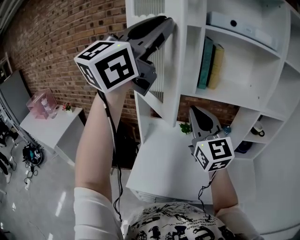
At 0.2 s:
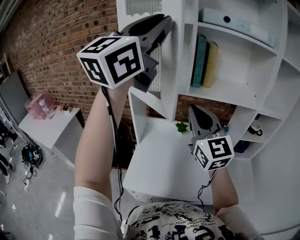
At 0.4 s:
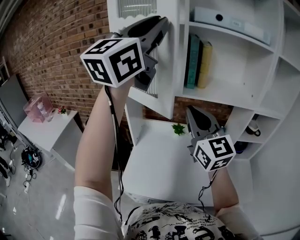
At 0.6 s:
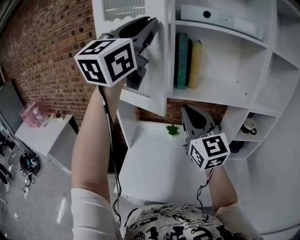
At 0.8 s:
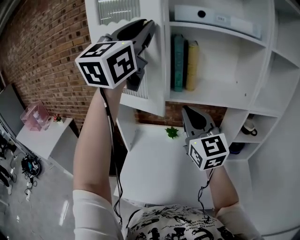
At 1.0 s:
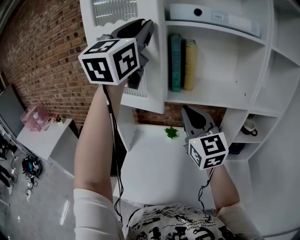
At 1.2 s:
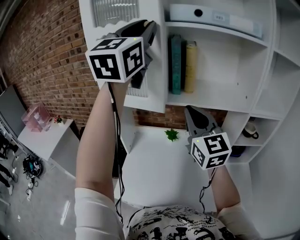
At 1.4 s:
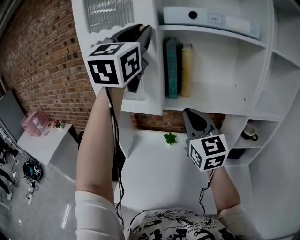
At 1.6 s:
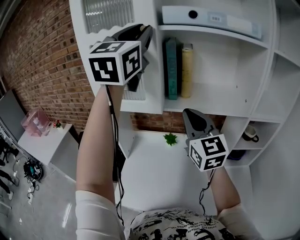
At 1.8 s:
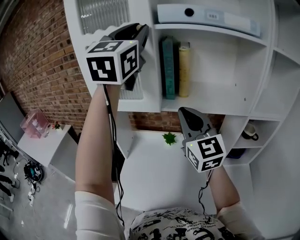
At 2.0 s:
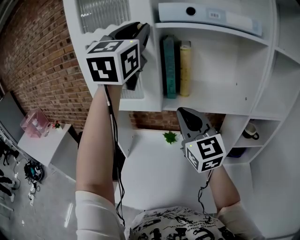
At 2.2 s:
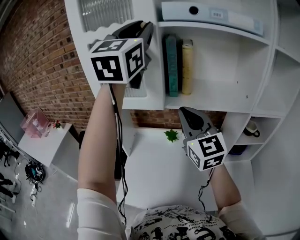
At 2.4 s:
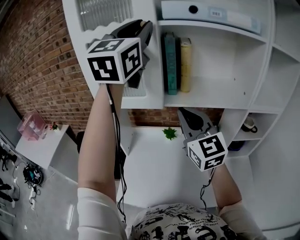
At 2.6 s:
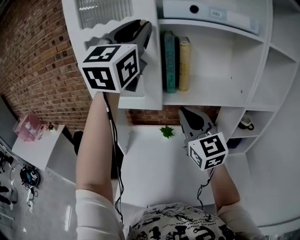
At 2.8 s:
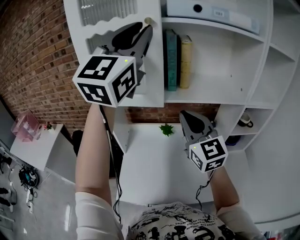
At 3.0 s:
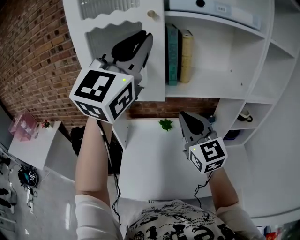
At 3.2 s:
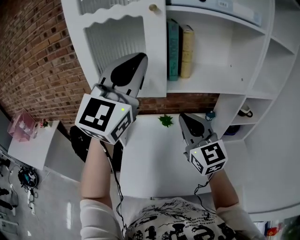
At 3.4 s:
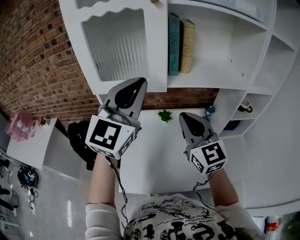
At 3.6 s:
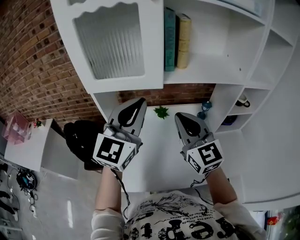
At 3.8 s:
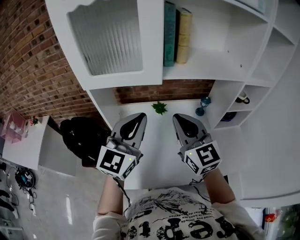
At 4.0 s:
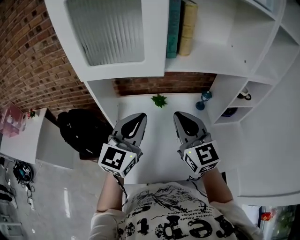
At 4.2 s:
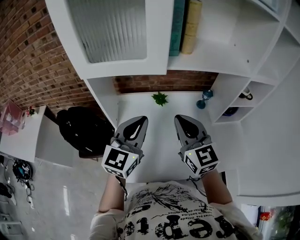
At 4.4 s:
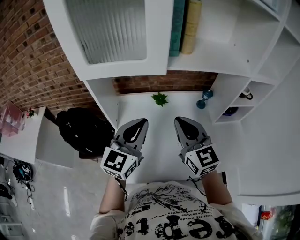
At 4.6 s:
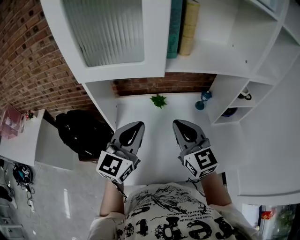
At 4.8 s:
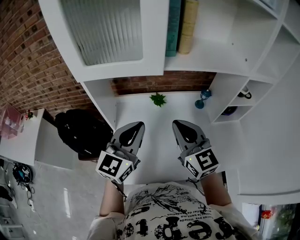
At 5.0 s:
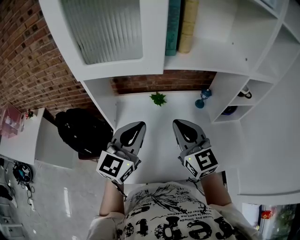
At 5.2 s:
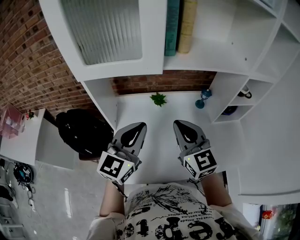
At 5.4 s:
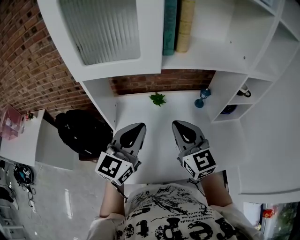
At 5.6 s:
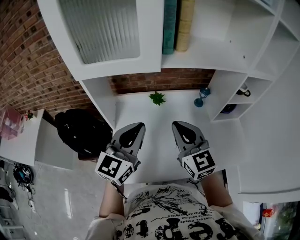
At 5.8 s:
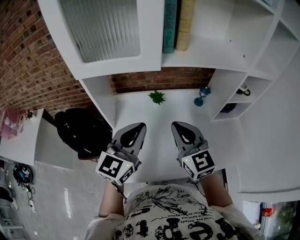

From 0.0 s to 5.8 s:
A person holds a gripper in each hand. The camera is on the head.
From 0.0 s to 1.4 s: The left gripper shifts some 20 cm forward and to the right, and swivels approximately 30 degrees. Meanwhile the right gripper moves to the right and forward, approximately 15 cm.
From 1.4 s to 2.8 s: The grippers make only small movements.
From 2.8 s to 4.4 s: The left gripper heads downward, covering roughly 40 cm, and changes its angle by approximately 30 degrees. The right gripper goes some 15 cm downward.
From 4.4 s to 5.8 s: The grippers move only a little.

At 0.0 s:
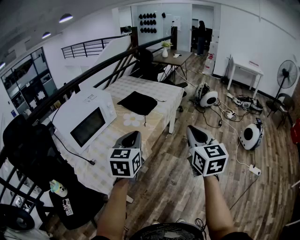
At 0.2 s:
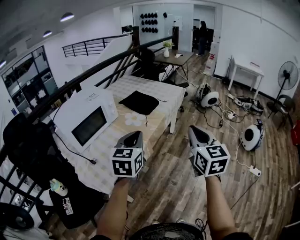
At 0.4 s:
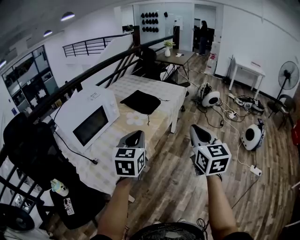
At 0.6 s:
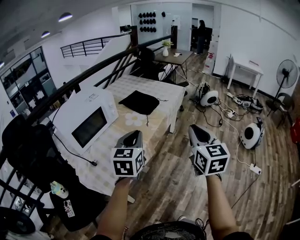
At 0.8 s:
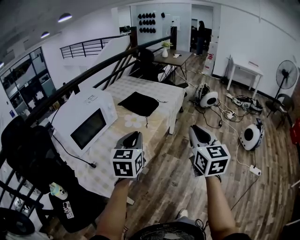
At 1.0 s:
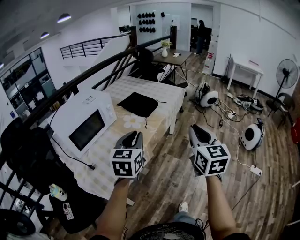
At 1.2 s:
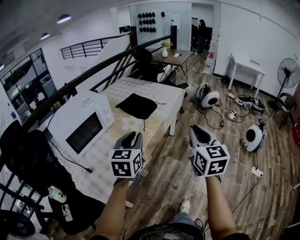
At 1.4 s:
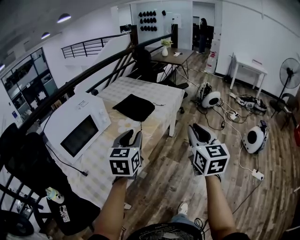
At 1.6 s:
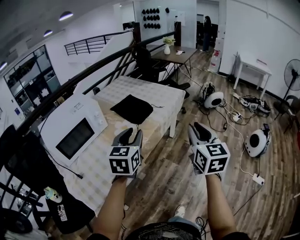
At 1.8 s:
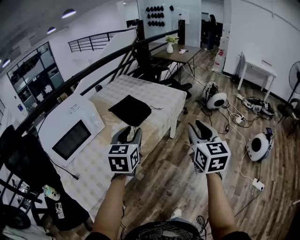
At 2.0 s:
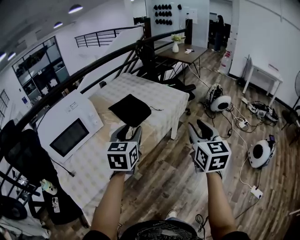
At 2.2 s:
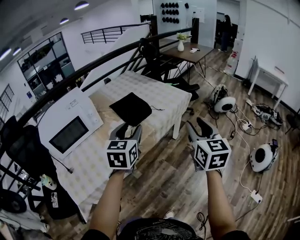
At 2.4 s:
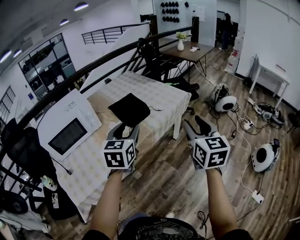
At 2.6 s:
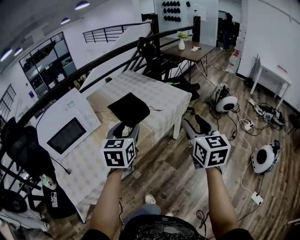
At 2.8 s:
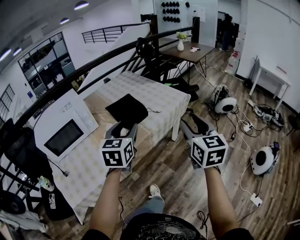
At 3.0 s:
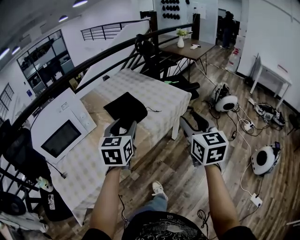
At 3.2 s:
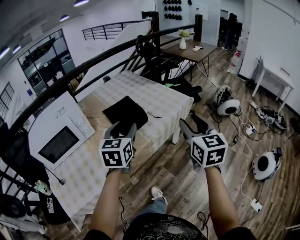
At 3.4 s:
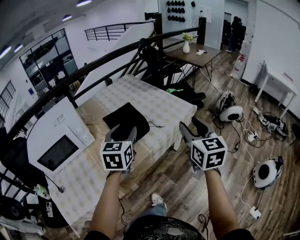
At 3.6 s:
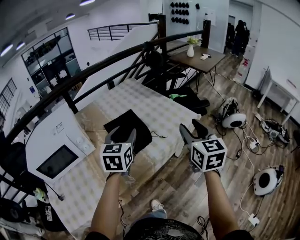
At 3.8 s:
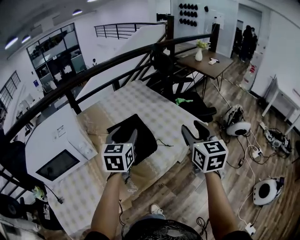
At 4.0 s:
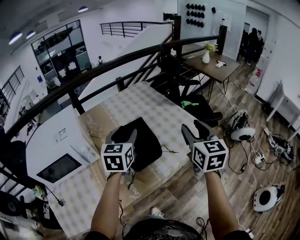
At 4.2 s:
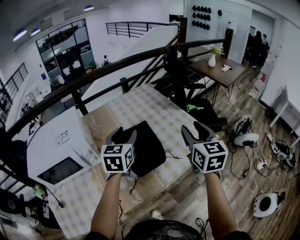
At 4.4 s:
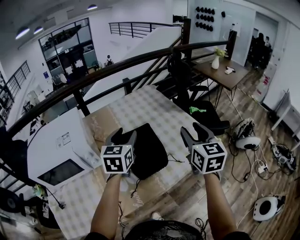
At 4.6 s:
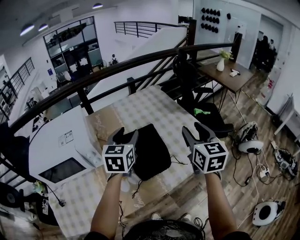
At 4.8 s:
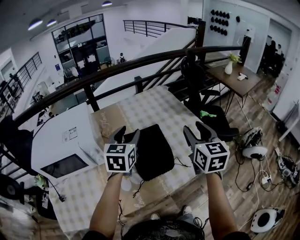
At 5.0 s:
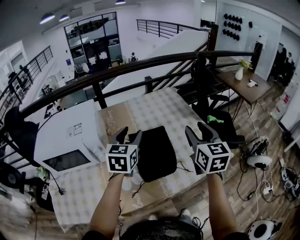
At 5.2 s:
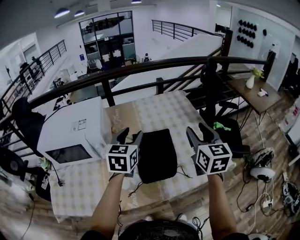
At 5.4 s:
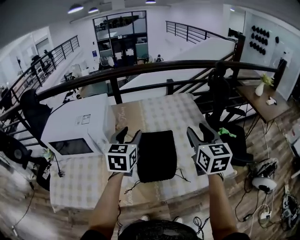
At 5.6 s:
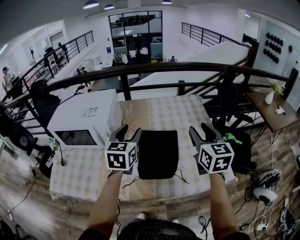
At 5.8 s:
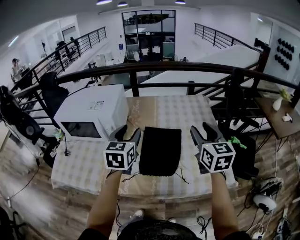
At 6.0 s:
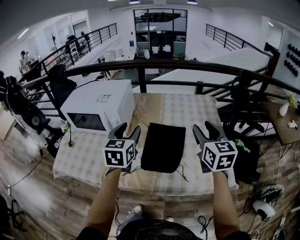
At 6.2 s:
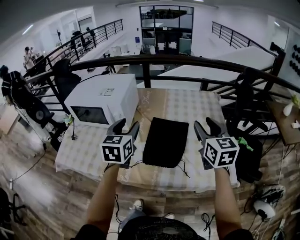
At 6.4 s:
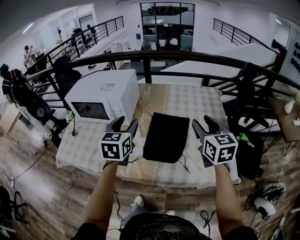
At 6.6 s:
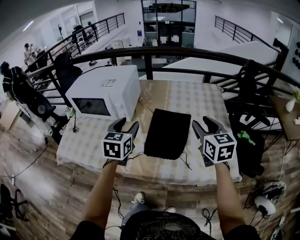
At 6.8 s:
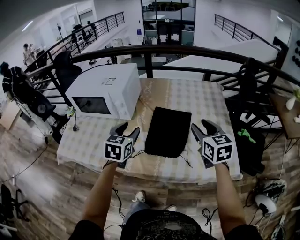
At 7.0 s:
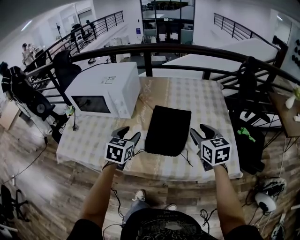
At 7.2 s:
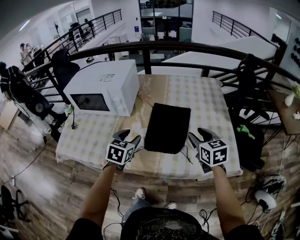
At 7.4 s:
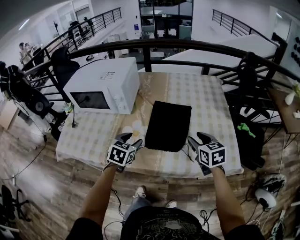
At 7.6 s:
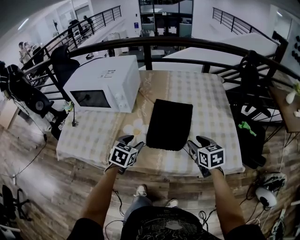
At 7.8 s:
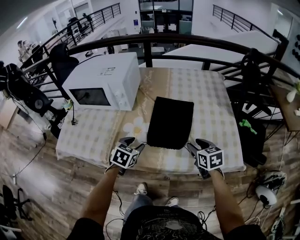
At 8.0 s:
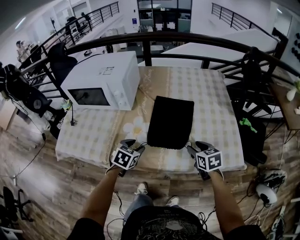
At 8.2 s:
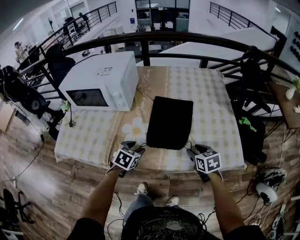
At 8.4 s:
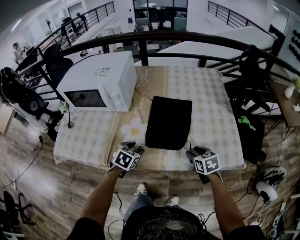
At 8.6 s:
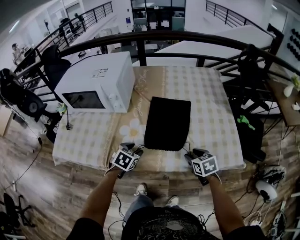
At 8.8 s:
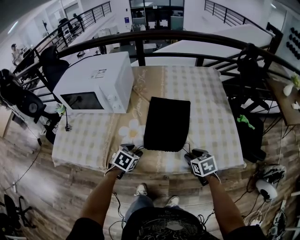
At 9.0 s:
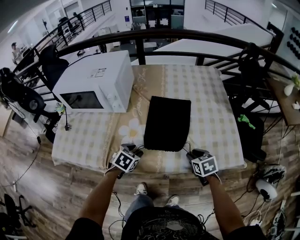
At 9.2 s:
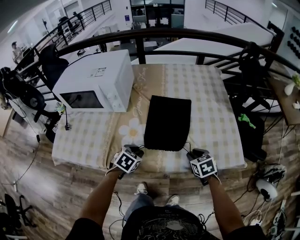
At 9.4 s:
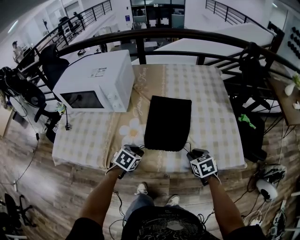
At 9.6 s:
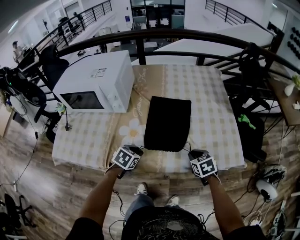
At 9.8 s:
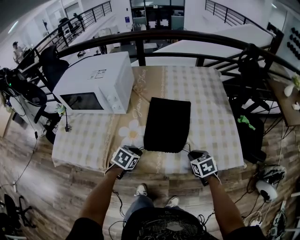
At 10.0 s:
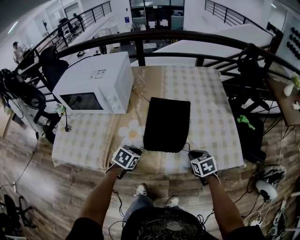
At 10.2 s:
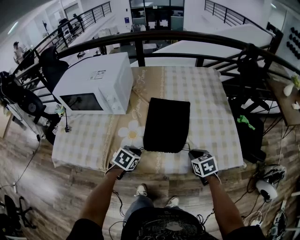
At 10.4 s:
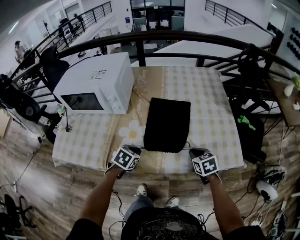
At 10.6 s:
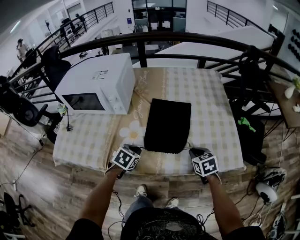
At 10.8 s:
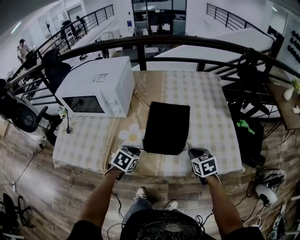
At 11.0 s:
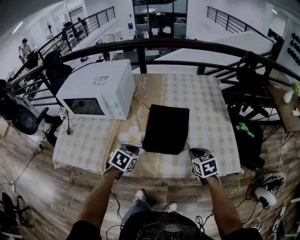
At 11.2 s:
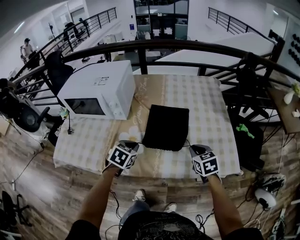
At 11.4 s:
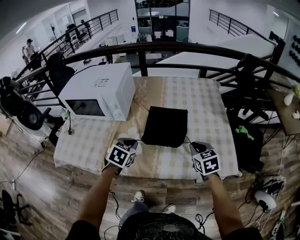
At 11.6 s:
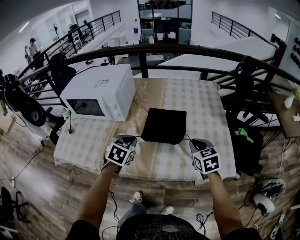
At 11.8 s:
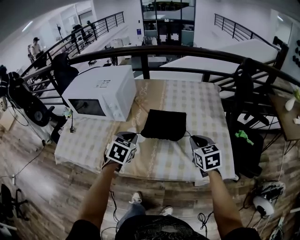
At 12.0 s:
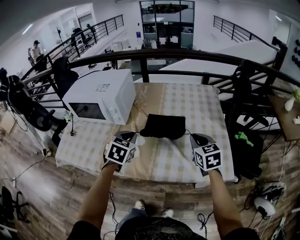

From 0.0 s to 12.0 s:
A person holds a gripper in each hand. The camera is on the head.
From 0.0 s to 1.6 s: Both grippers travel together forward and to the right, some 15 cm. The left gripper opens.
From 1.6 s to 3.0 s: The two grippers go about 15 cm forward and to the right. The right gripper opens up.
From 3.0 s to 4.4 s: Both grippers move forward, roughly 30 cm.
From 4.4 s to 6.0 s: The left gripper shifts by some 10 cm, and swivels approximately 40 degrees. Meanwhile the right gripper ends up some 10 cm from where it was, and changes its angle by approximately 40 degrees.
From 6.0 s to 7.6 s: The left gripper travels downward and backward by approximately 20 cm, and changes its angle by about 30 degrees. Meanwhile the right gripper shifts approximately 20 cm downward, and swivels roughly 30 degrees.
From 7.6 s to 9.0 s: The two grippers go about 10 cm downward.
From 9.0 s to 10.4 s: The right gripper closes its fingers, while the left gripper closes its fingers.
From 10.4 s to 12.0 s: The right gripper is displaced upward and forward by approximately 20 cm, and turns by approximately 20 degrees; the left gripper shifts some 15 cm upward, and swivels about 30 degrees.

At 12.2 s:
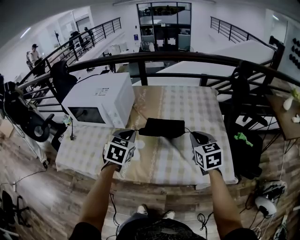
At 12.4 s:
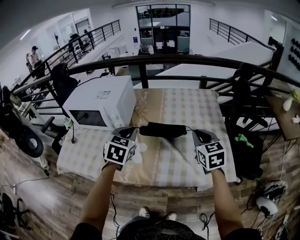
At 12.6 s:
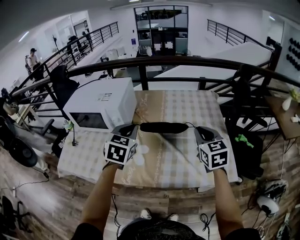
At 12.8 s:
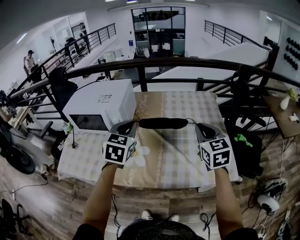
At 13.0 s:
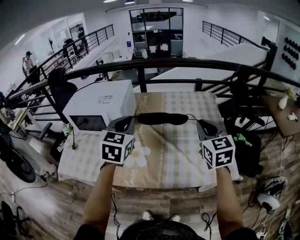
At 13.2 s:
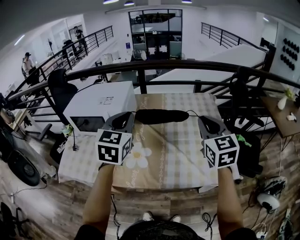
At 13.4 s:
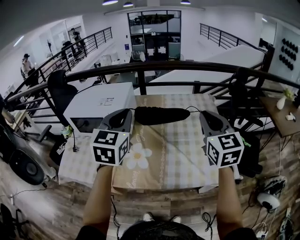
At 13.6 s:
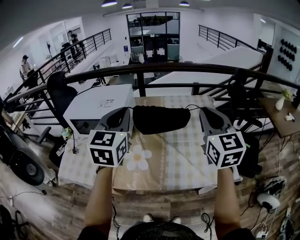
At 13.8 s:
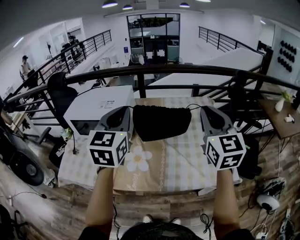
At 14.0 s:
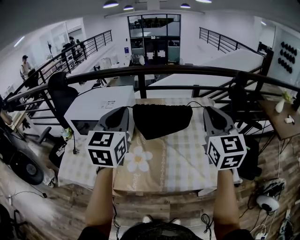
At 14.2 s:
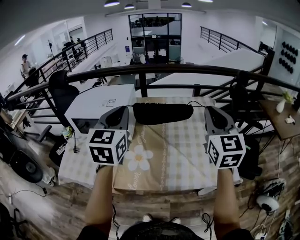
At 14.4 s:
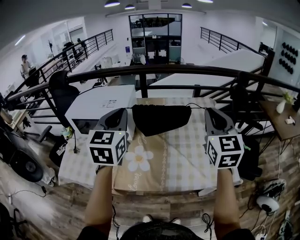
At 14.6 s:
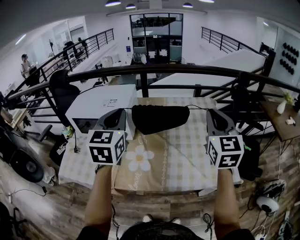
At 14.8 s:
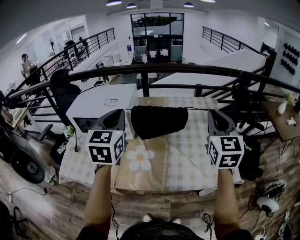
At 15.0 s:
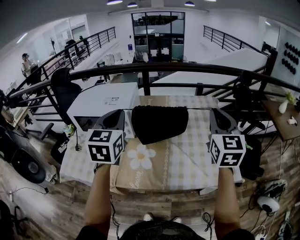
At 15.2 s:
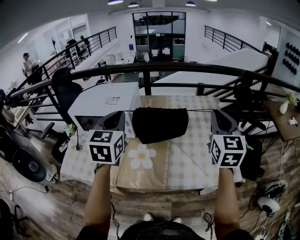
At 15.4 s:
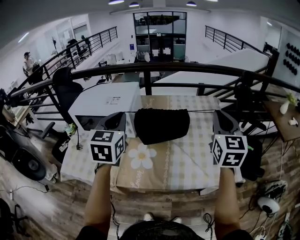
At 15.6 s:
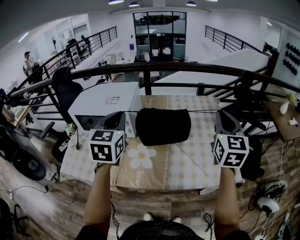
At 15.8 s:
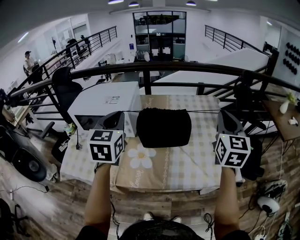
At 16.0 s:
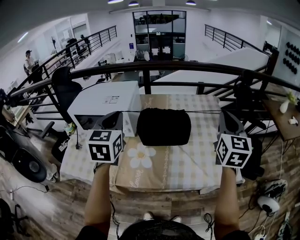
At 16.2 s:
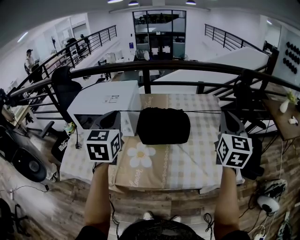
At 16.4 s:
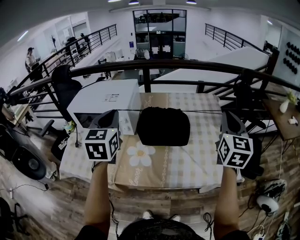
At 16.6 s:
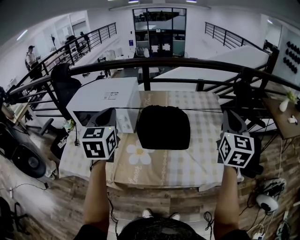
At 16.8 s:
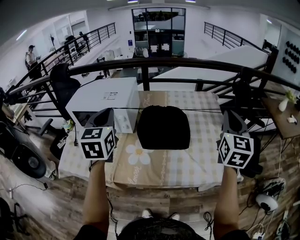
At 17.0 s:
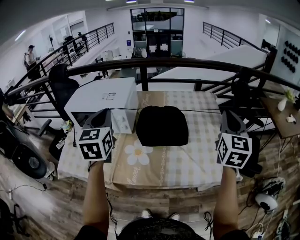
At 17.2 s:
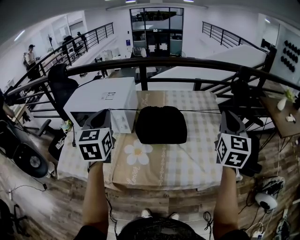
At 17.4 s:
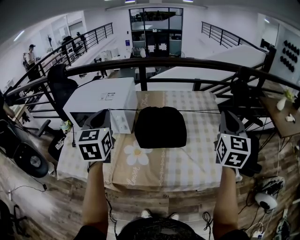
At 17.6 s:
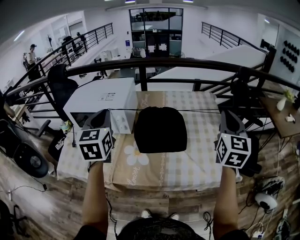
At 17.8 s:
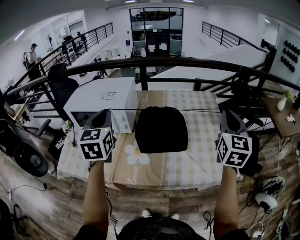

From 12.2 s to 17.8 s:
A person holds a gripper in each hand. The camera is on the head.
From 12.2 s to 13.6 s: The two grippers go about 20 cm upward. The right gripper changes its angle by approximately 30 degrees, while the left gripper turns by approximately 30 degrees.
From 13.6 s to 15.0 s: The left gripper shifts by about 5 cm.
From 15.0 s to 16.4 s: The right gripper shifts about 5 cm to the right.
From 16.4 s to 17.8 s: The grippers move only a little.
